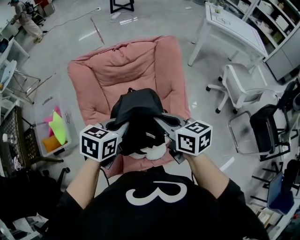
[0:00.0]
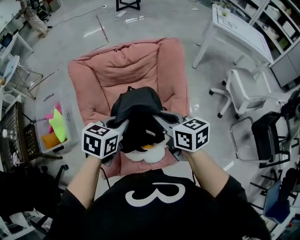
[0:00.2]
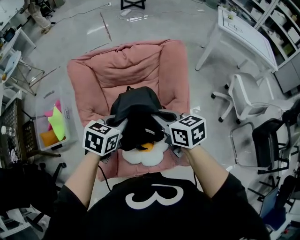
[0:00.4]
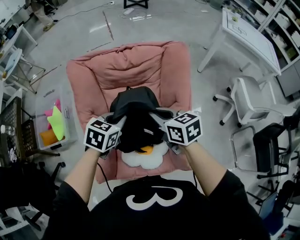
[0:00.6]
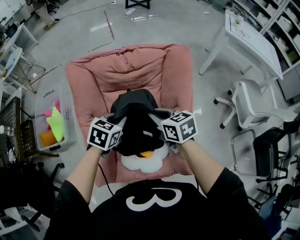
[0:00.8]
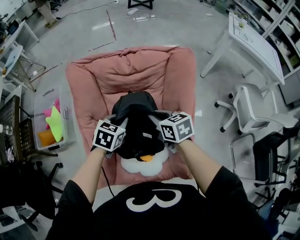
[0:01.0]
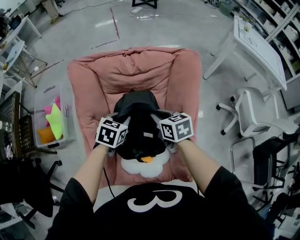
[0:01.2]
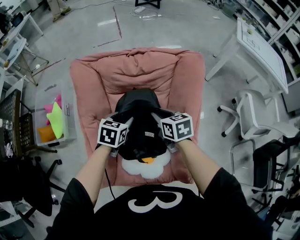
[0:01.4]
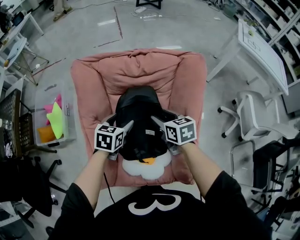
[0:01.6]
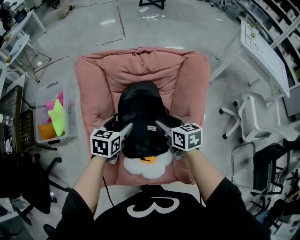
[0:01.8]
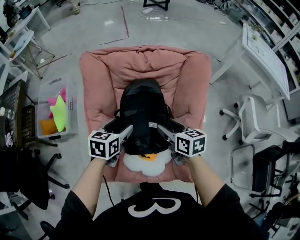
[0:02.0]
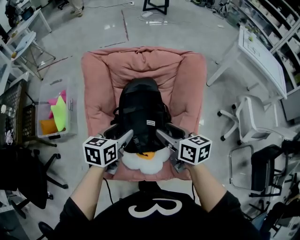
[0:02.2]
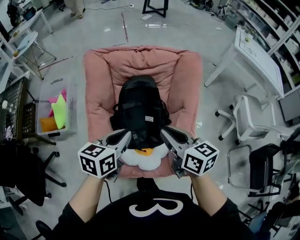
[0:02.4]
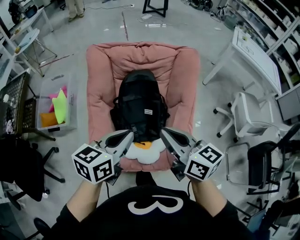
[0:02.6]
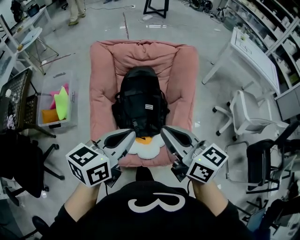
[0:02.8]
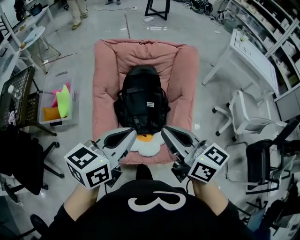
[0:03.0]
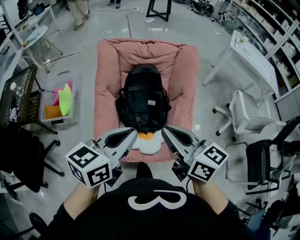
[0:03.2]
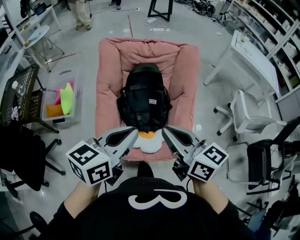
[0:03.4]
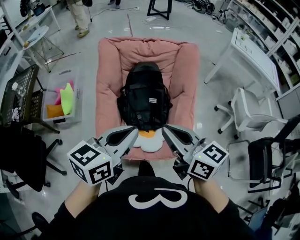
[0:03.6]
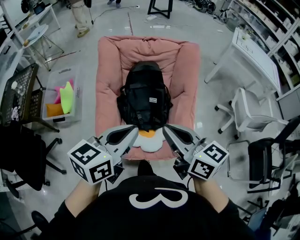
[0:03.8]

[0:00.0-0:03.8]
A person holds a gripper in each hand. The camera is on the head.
0.0 to 1.2 s: The two grippers go some 25 cm forward and downward.
1.2 to 2.6 s: The grippers both shift backward and upward by approximately 30 cm. The right gripper rotates about 30 degrees, and opens, then closes again, while the left gripper changes its angle by approximately 30 degrees, and opens, then closes once more.
2.6 to 3.8 s: The left gripper shifts roughly 10 cm backward and upward, while the right gripper moves backward, some 10 cm.

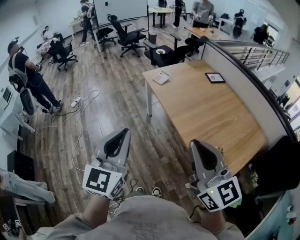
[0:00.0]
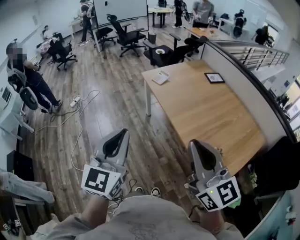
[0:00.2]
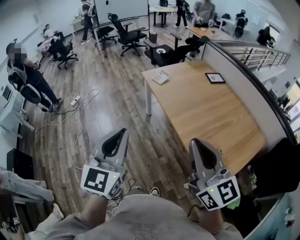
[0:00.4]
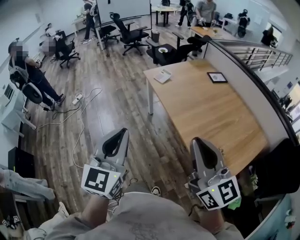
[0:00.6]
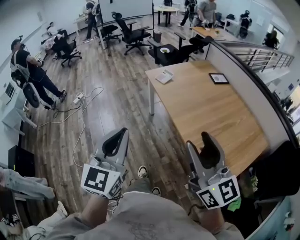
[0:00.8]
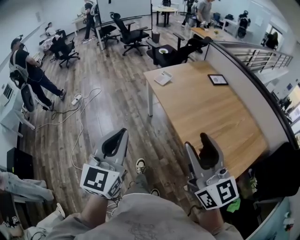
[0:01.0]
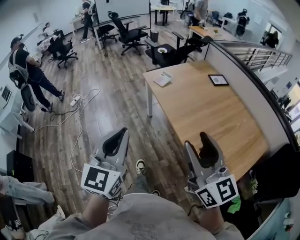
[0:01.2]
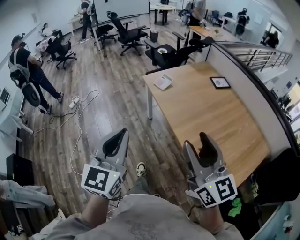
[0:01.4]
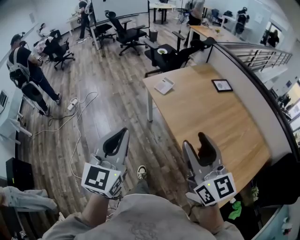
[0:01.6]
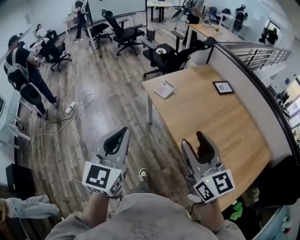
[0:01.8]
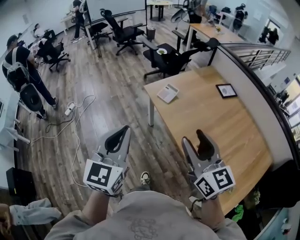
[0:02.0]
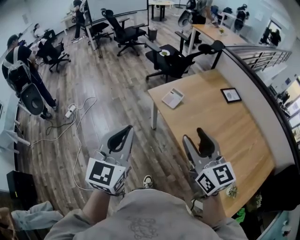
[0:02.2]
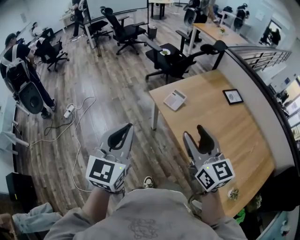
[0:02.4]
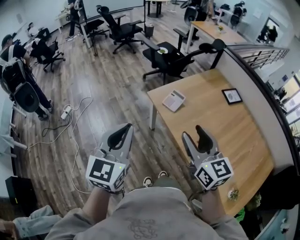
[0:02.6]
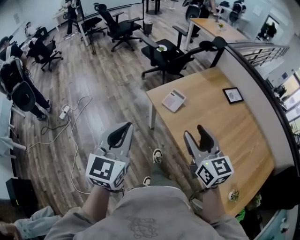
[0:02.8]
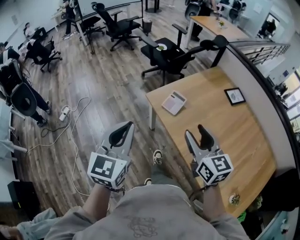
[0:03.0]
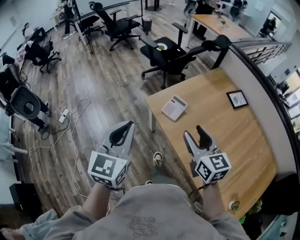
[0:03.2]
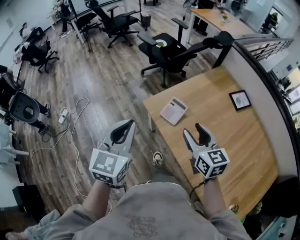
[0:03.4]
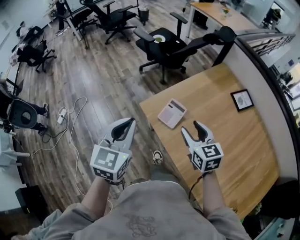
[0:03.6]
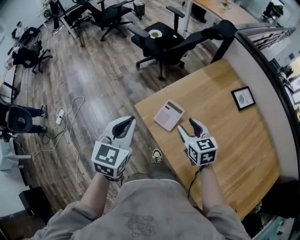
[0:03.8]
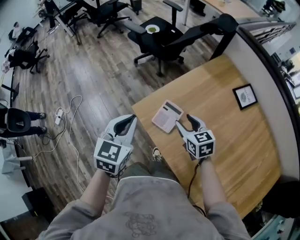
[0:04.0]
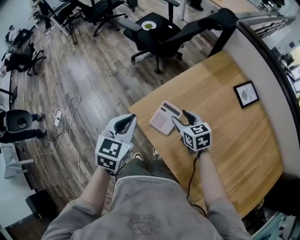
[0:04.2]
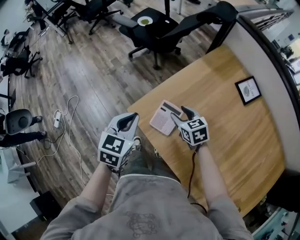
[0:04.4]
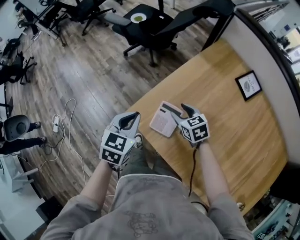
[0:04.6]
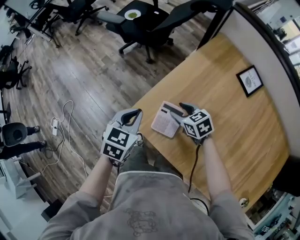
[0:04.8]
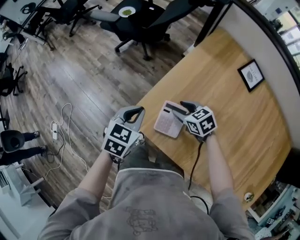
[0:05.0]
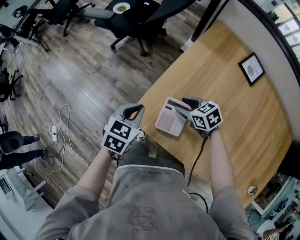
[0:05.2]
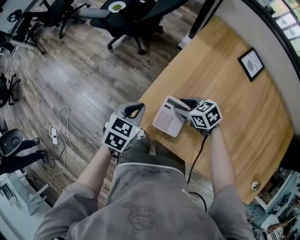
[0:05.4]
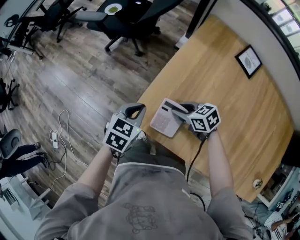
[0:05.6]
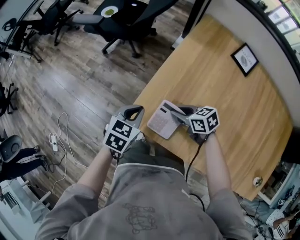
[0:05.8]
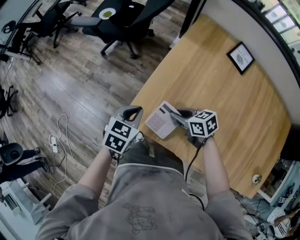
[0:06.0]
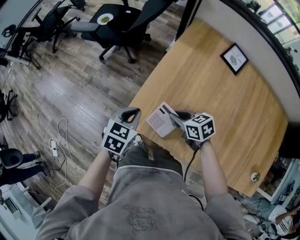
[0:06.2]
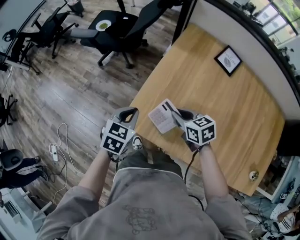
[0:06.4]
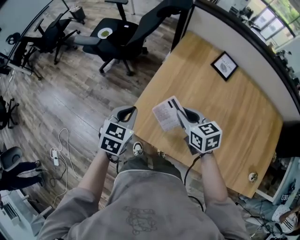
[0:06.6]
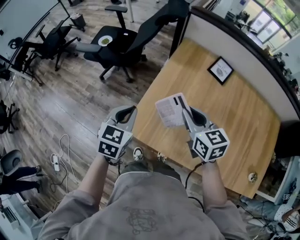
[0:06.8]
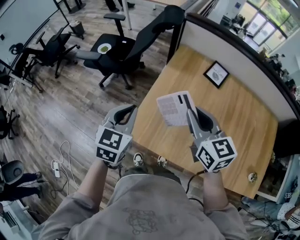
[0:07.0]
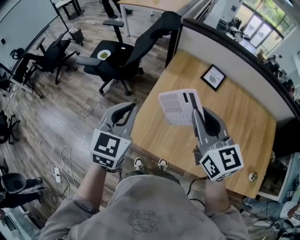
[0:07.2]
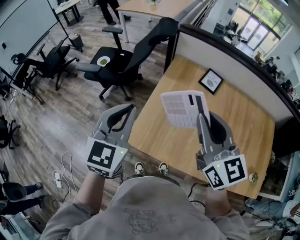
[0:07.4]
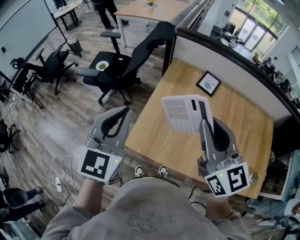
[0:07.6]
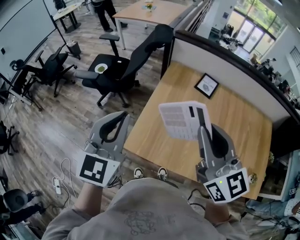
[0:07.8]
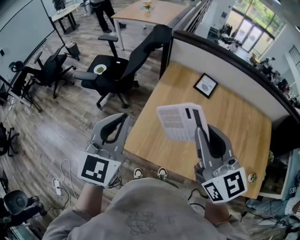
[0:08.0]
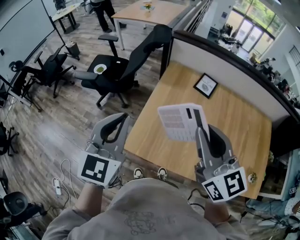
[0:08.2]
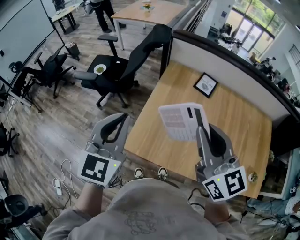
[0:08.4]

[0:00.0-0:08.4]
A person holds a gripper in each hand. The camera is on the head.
0.0 to 1.4 s: The grippers both shift forward by about 15 cm. The right gripper opens its fingers.
1.4 to 2.8 s: The two grippers go about 35 cm forward.
2.8 to 4.2 s: Both grippers move forward and downward, some 40 cm. The right gripper swivels roughly 30 degrees; the left gripper swivels roughly 30 degrees.
4.2 to 5.6 s: The left gripper heads downward and forward, covering about 20 cm, and swivels roughly 30 degrees; the right gripper shifts about 10 cm downward.
5.6 to 7.0 s: Both grippers travel together upward, some 30 cm. The left gripper changes its angle by about 20 degrees; the right gripper swivels about 50 degrees.
7.0 to 8.4 s: The right gripper moves upward and backward, approximately 15 cm; the left gripper shifts about 15 cm upward.

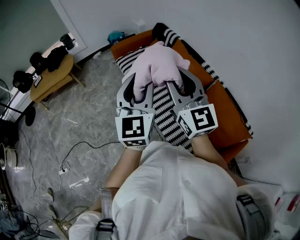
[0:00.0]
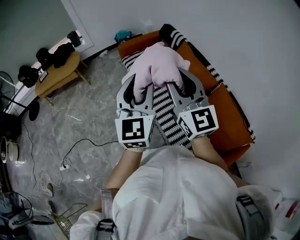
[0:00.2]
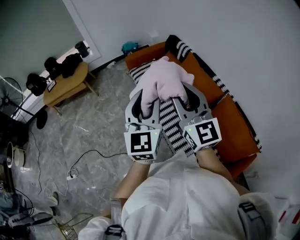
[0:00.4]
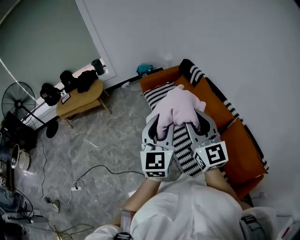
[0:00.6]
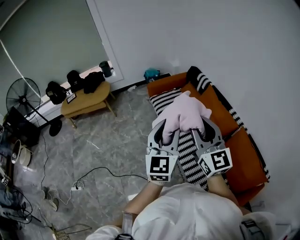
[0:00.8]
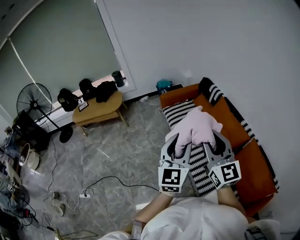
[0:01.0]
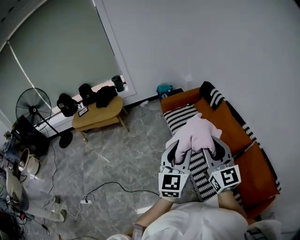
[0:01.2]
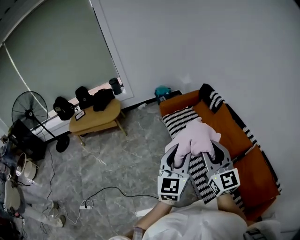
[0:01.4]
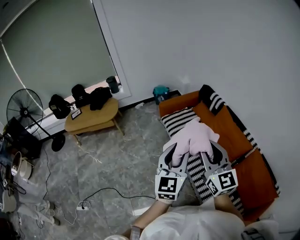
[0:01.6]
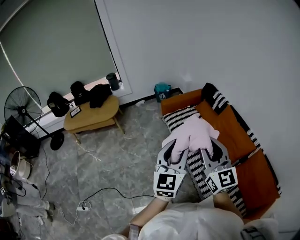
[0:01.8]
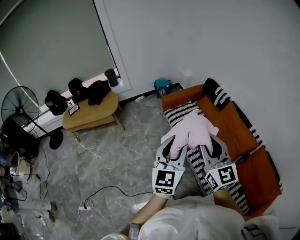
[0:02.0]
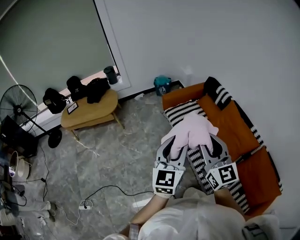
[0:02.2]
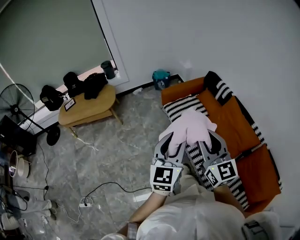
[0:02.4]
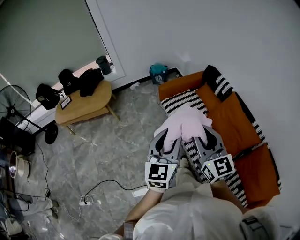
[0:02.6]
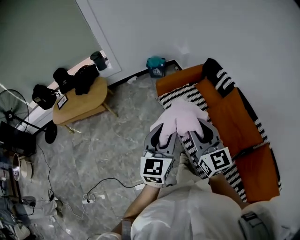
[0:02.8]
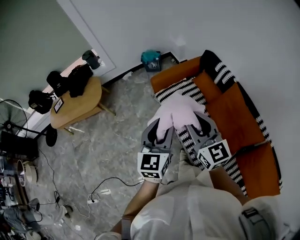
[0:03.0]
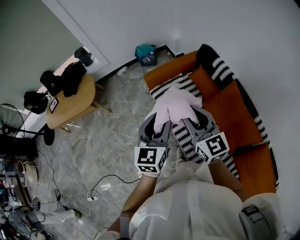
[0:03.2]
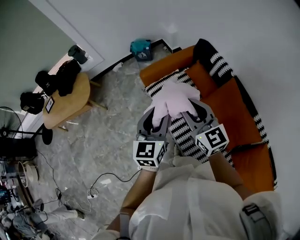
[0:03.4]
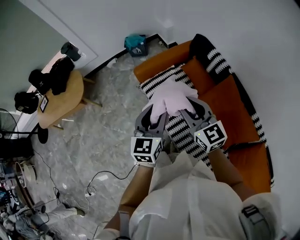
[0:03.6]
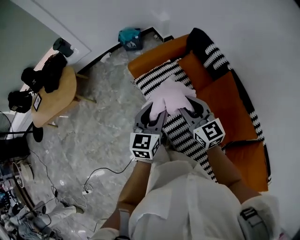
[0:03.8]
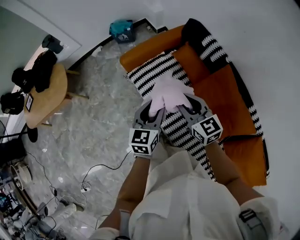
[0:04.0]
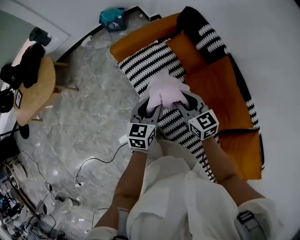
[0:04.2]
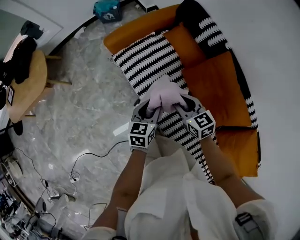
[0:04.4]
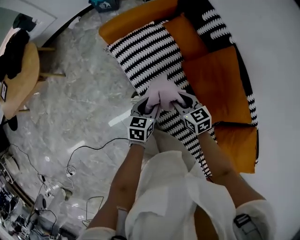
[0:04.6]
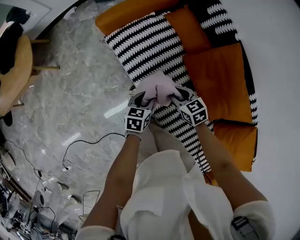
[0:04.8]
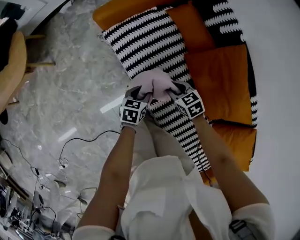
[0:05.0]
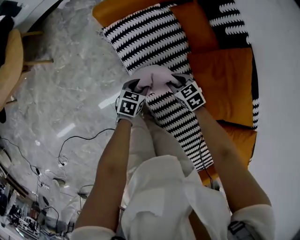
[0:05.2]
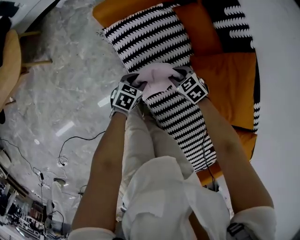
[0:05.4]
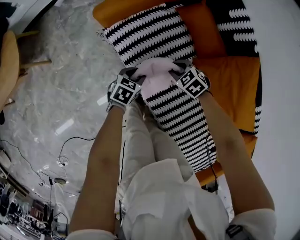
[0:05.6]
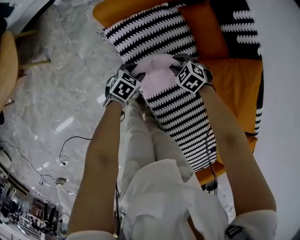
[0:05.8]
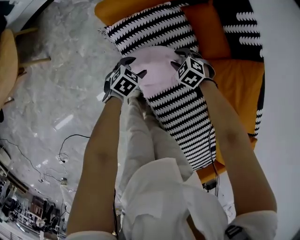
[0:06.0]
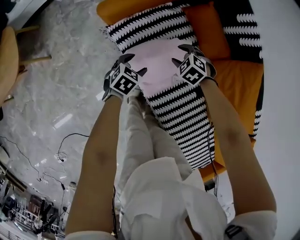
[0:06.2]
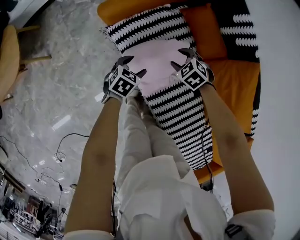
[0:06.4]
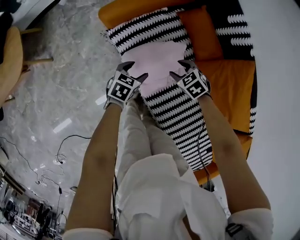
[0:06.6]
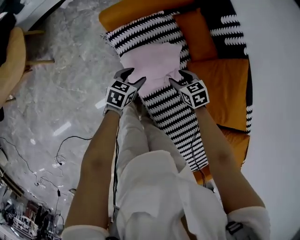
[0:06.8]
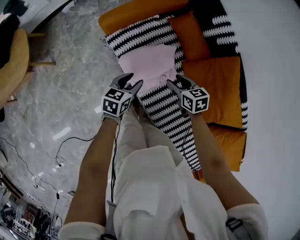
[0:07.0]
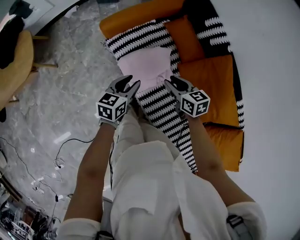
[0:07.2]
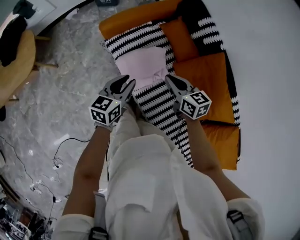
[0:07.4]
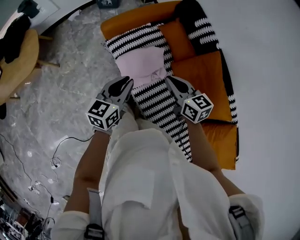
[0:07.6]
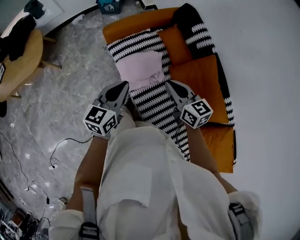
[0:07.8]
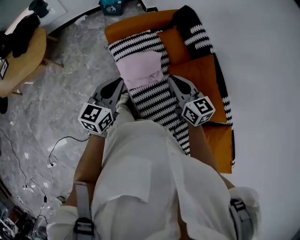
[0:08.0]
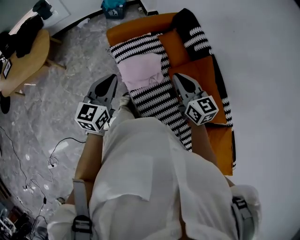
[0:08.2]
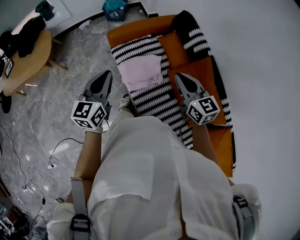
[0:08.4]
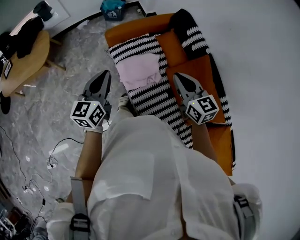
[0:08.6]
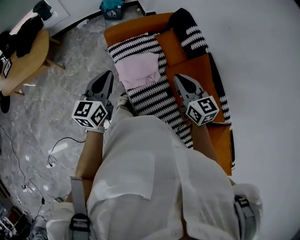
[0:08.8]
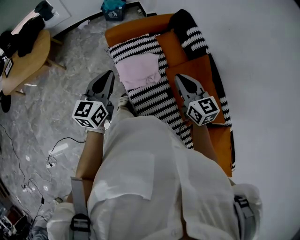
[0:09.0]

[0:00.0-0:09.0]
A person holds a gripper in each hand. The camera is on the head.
0.0 to 1.6 s: Both grippers travel together to the left and forward, about 15 cm.
1.6 to 3.0 s: The two grippers go roughly 30 cm forward.
3.0 to 4.4 s: Both grippers travel together downward, roughly 35 cm. The left gripper changes its angle by some 30 degrees. The right gripper tips its fingers downward by roughly 30 degrees.
4.4 to 6.0 s: Both grippers move downward, some 25 cm. The left gripper rotates some 40 degrees, and opens up. Meanwhile the right gripper angles its fingers downward, by roughly 40 degrees, and opens its fingers.
6.0 to 7.6 s: The two grippers go roughly 35 cm upward. The right gripper points its fingers about 50 degrees further upward, and closes, while the left gripper angles its fingers upward, by some 40 degrees, and closes.
7.6 to 9.0 s: The left gripper goes some 10 cm upward, and swivels roughly 20 degrees. Meanwhile the right gripper goes about 15 cm upward, to the right and backward.

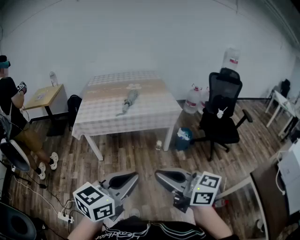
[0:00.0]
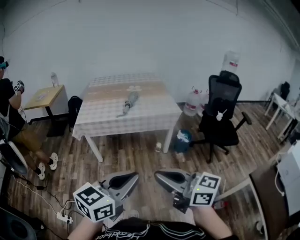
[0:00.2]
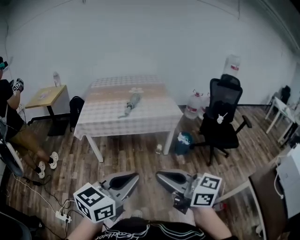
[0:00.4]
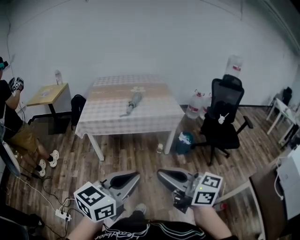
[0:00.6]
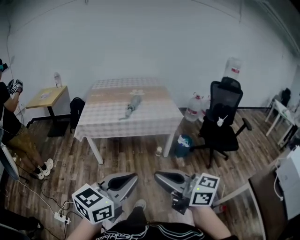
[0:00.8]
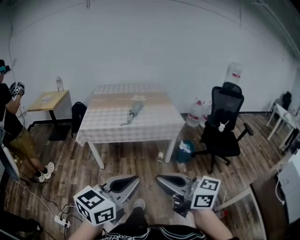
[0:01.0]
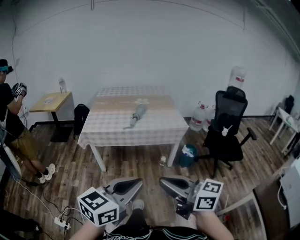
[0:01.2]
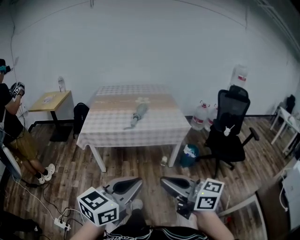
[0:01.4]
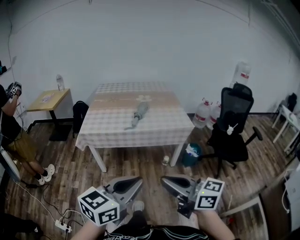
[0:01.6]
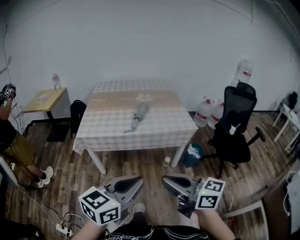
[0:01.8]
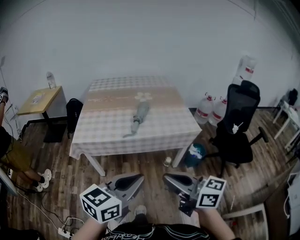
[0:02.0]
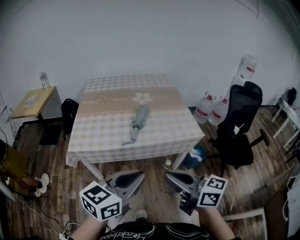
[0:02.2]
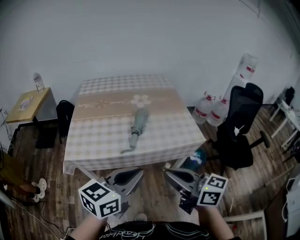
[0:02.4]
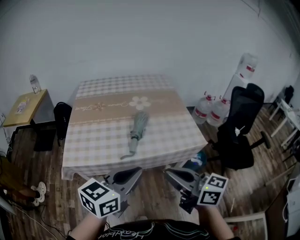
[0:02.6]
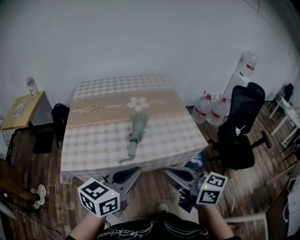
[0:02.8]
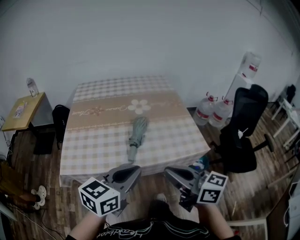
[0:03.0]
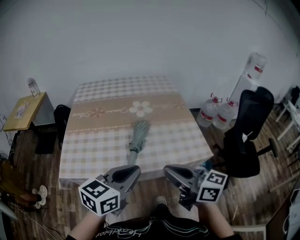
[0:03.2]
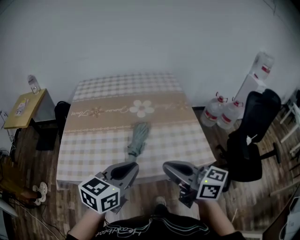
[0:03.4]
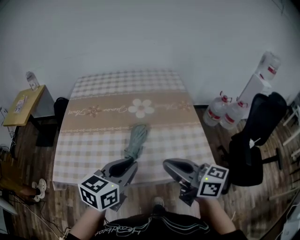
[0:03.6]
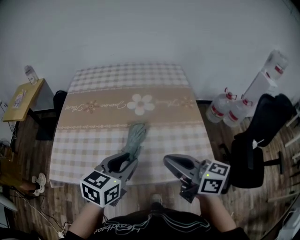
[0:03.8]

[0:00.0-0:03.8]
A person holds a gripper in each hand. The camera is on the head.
0.0 to 1.2 s: The grippers move only a little.
1.2 to 2.6 s: Both grippers are carried forward, roughly 40 cm.
2.6 to 3.8 s: The left gripper heads forward, downward and to the right, covering about 20 cm, and turns by about 20 degrees. Meanwhile the right gripper moves forward and to the right, about 20 cm.
